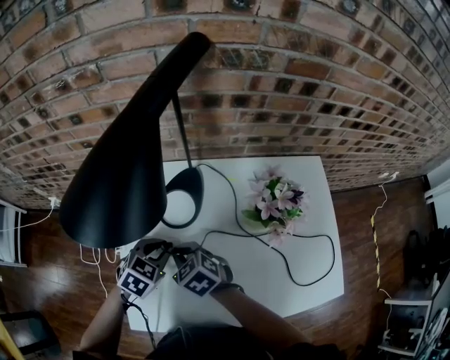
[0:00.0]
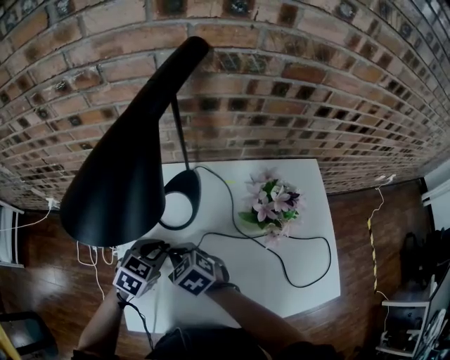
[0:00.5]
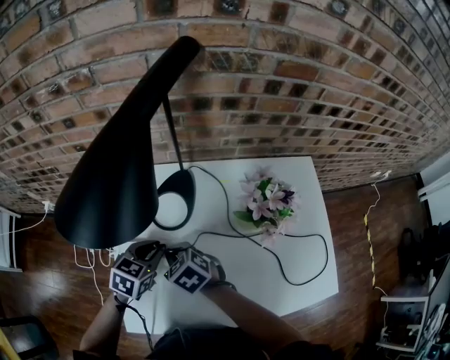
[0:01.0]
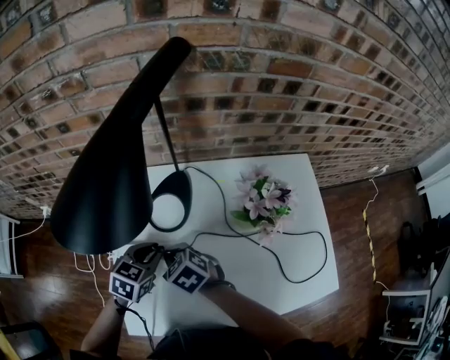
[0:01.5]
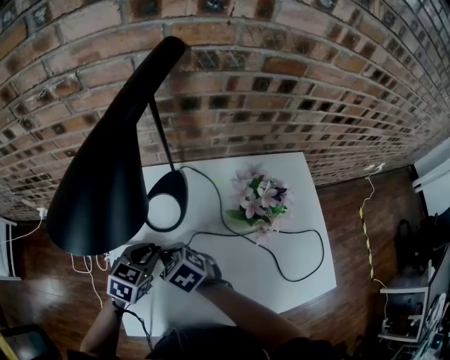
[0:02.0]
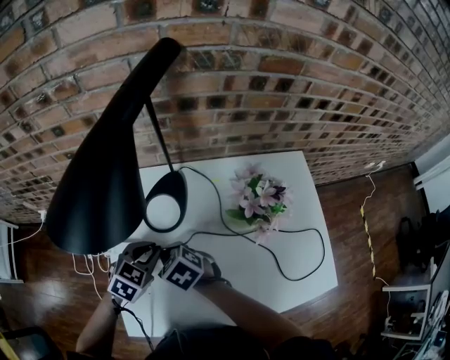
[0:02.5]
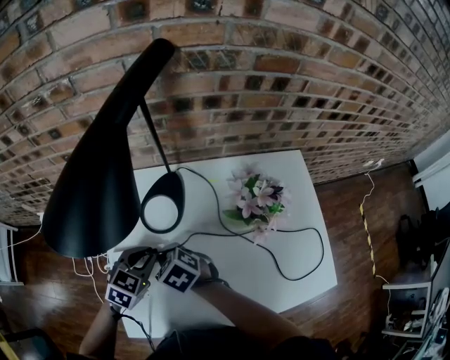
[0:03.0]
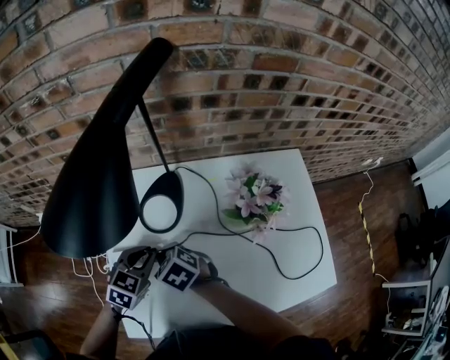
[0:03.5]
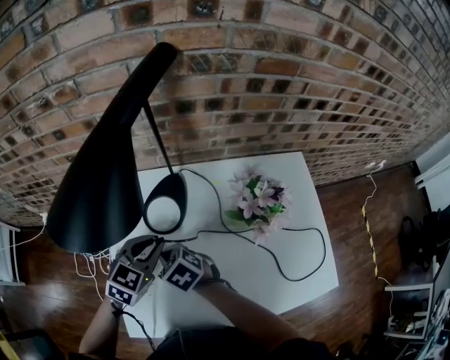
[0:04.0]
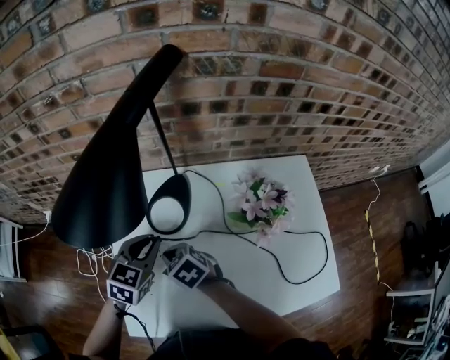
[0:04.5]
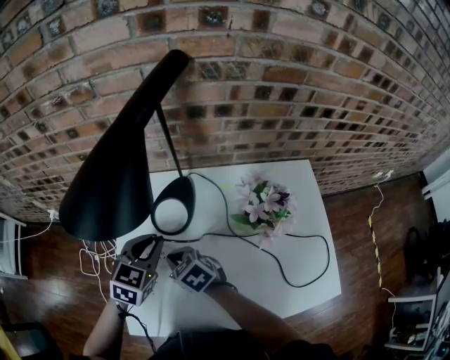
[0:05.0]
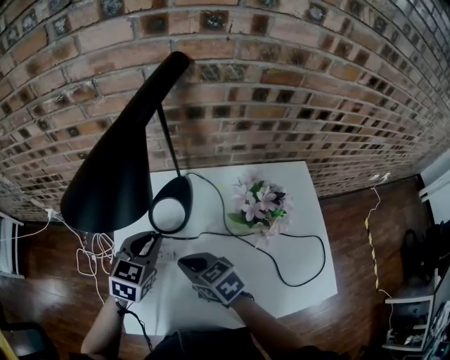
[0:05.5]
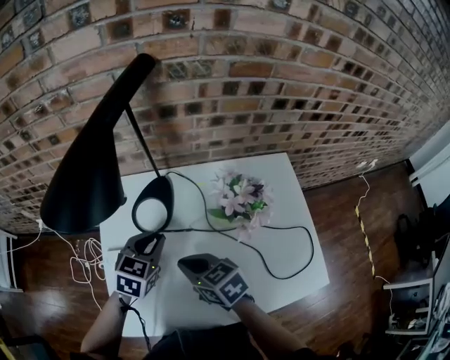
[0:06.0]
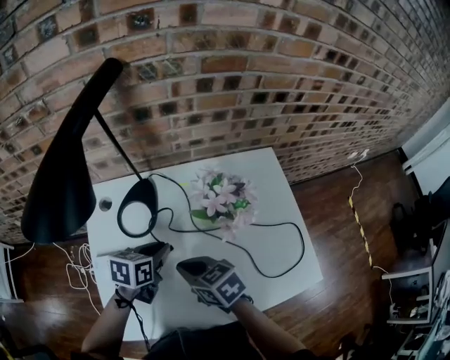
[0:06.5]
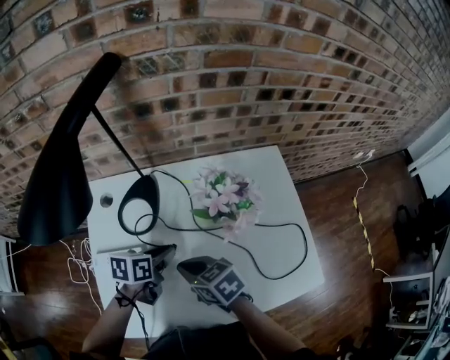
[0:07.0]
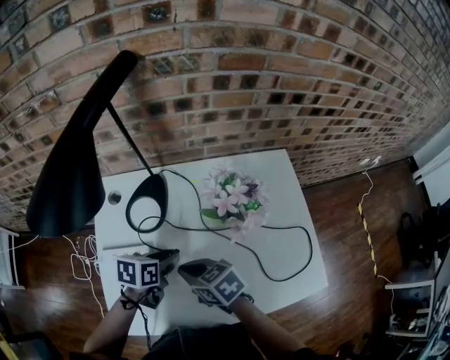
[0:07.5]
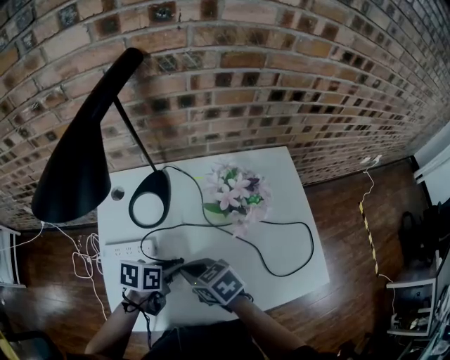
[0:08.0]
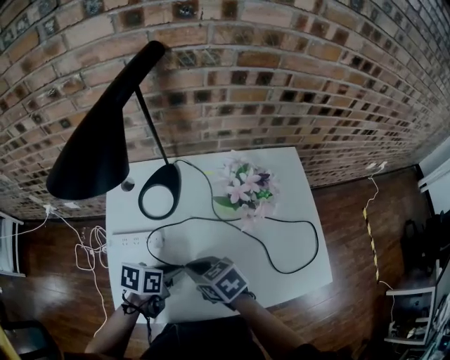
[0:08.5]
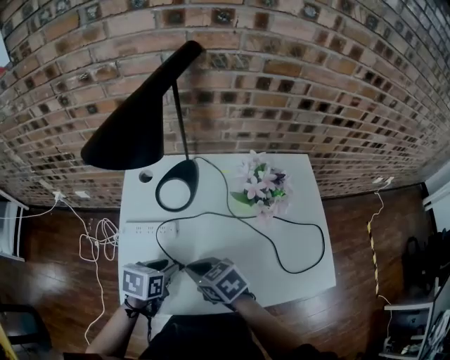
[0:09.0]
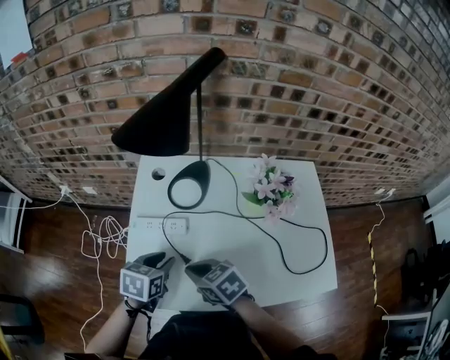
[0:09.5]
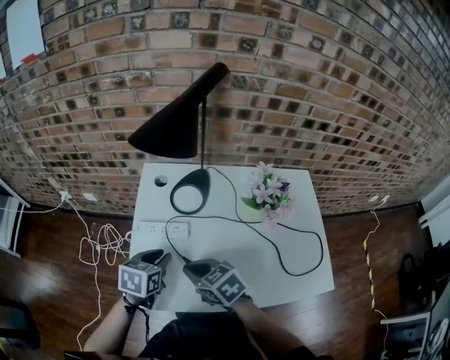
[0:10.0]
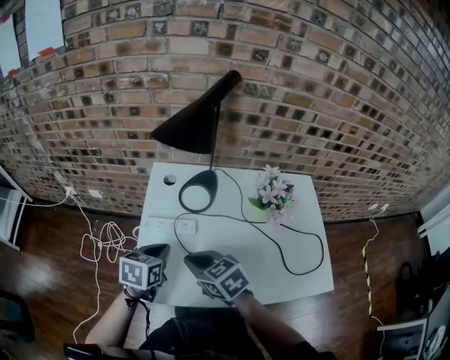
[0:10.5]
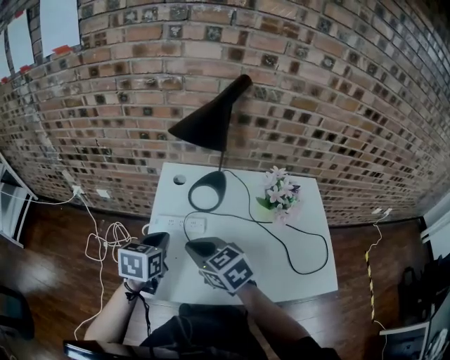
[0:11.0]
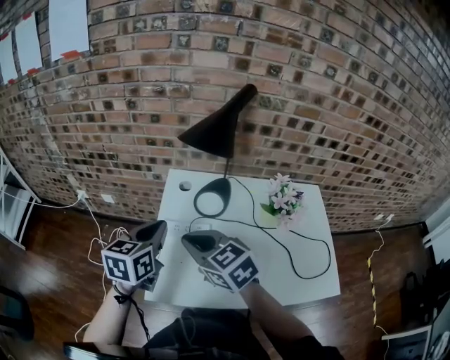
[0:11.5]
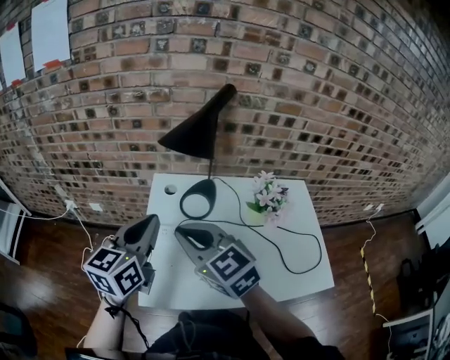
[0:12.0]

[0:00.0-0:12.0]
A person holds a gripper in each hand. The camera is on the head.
0:00.0 to 0:02.0: The grippers stay close to where they were, moving slightly.
0:02.0 to 0:04.0: The left gripper shifts roughly 5 cm upward.
0:04.0 to 0:06.0: The right gripper heads to the right, upward and backward, covering about 15 cm, and rotates roughly 30 degrees.
0:06.0 to 0:08.0: The left gripper changes place by approximately 15 cm, and rotates about 50 degrees. Meanwhile the right gripper changes place by approximately 5 cm.
0:08.0 to 0:10.0: The left gripper changes place by about 15 cm, and swivels some 30 degrees; the right gripper changes place by some 10 cm.
0:10.0 to 0:12.0: Both grippers travel together upward, roughly 20 cm. The left gripper tilts its fingers approximately 40 degrees upward, and closes up; the right gripper rotates some 30 degrees.

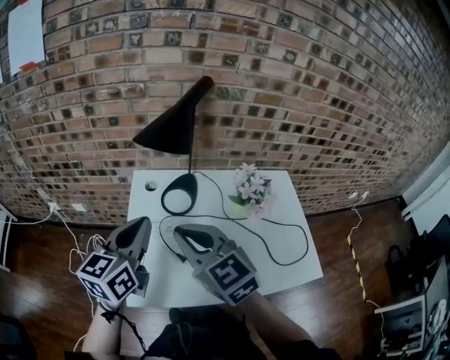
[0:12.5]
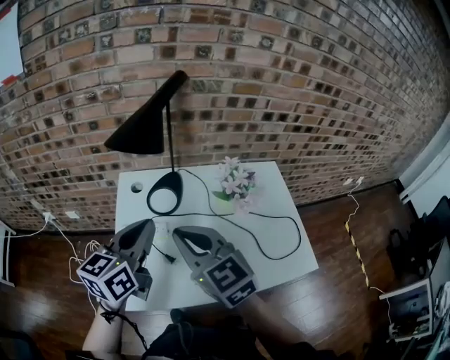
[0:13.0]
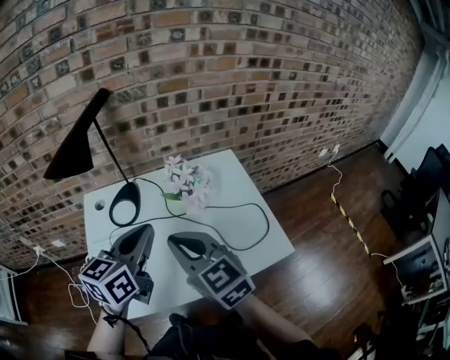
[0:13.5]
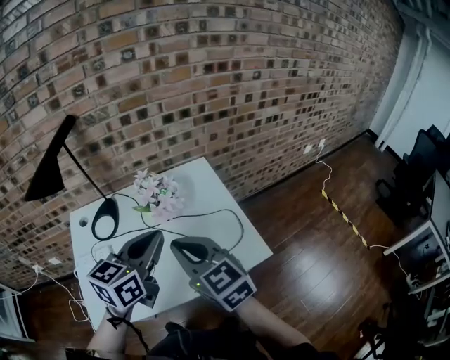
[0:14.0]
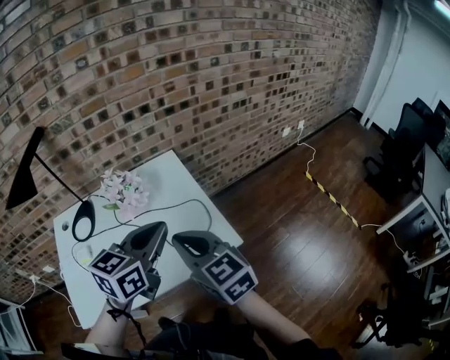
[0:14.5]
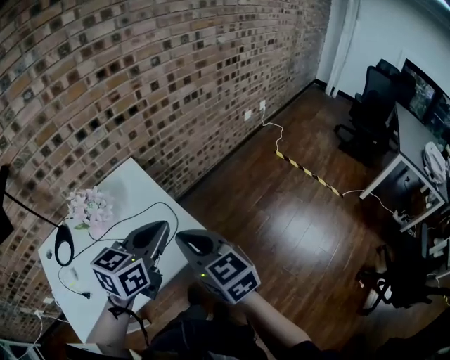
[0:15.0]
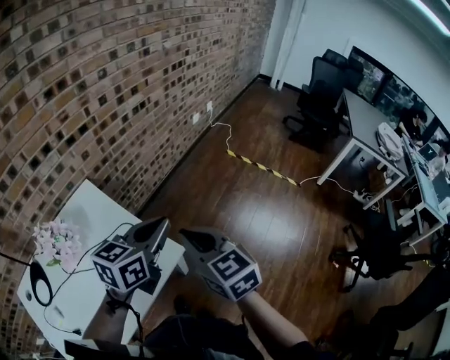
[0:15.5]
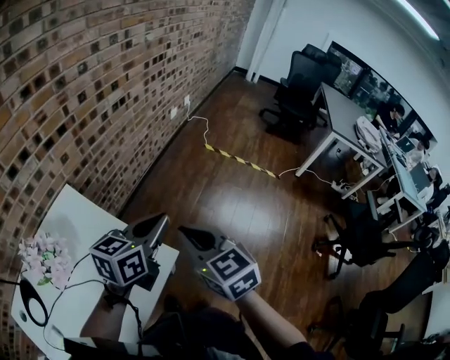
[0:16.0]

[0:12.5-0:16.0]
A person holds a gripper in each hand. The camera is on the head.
0:12.5 to 0:14.5: The two grippers travel together, roughly 40 cm. The right gripper rotates some 30 degrees; the left gripper swivels about 40 degrees.
0:14.5 to 0:16.0: The left gripper moves some 25 cm, and rotates about 40 degrees, while the right gripper shifts by about 20 cm, and turns by approximately 40 degrees.

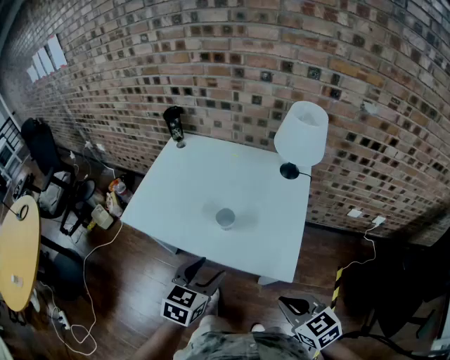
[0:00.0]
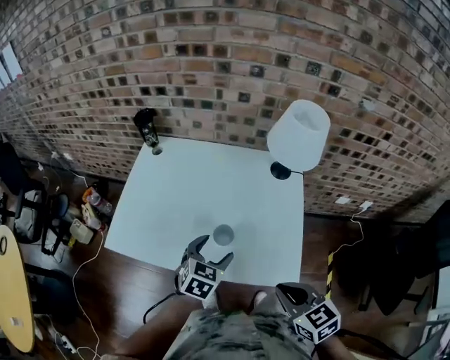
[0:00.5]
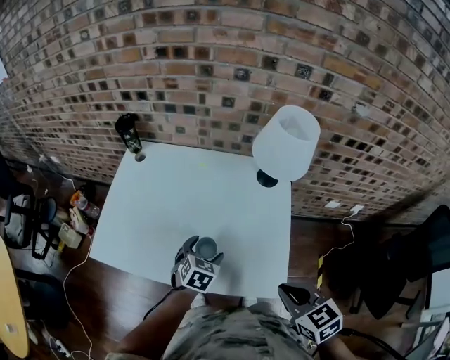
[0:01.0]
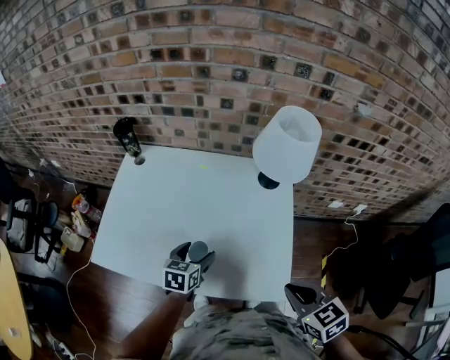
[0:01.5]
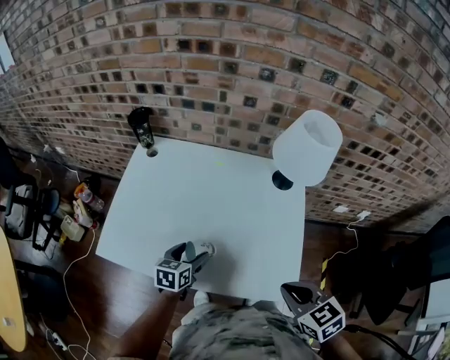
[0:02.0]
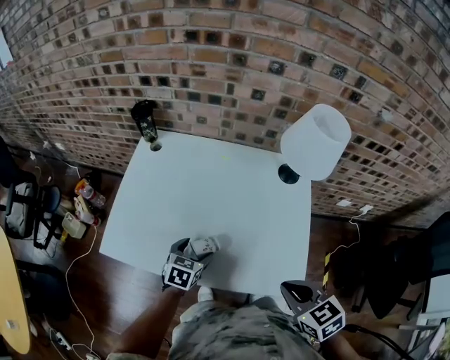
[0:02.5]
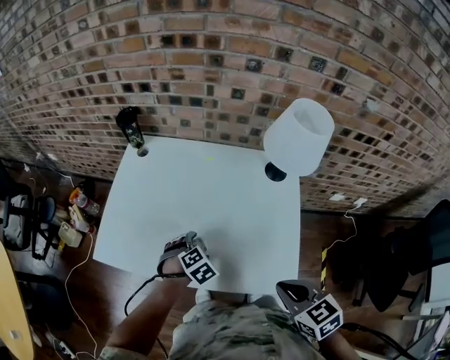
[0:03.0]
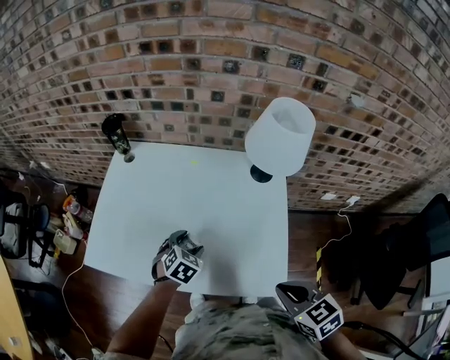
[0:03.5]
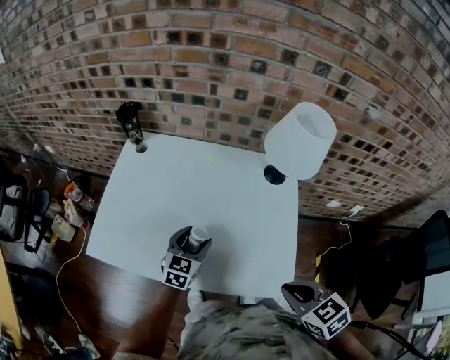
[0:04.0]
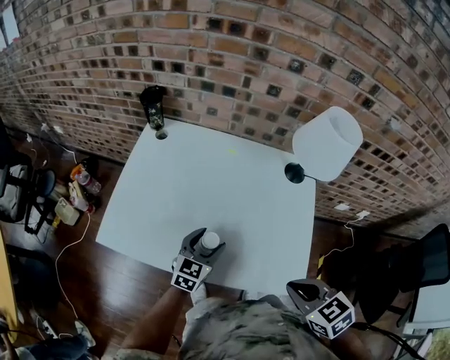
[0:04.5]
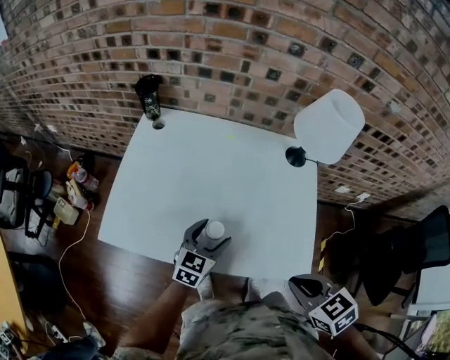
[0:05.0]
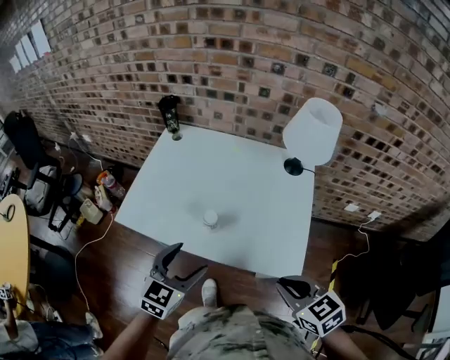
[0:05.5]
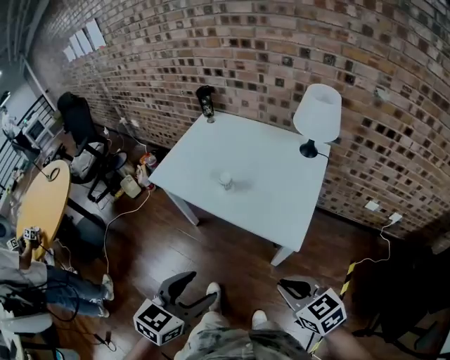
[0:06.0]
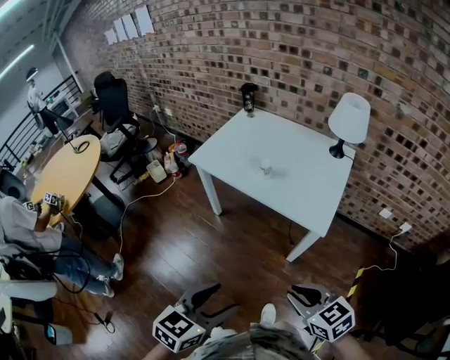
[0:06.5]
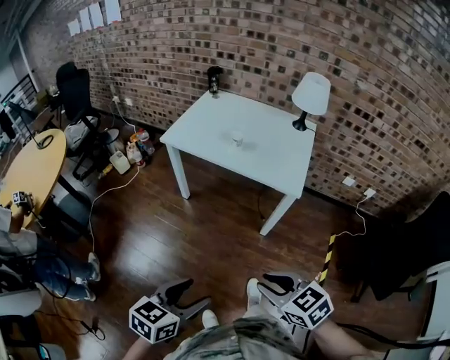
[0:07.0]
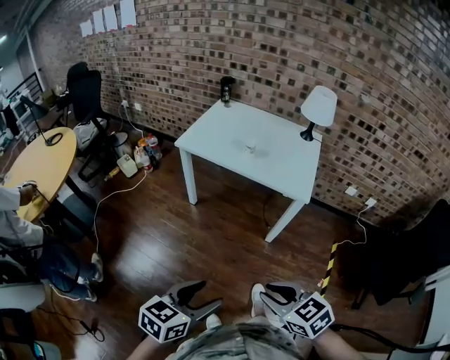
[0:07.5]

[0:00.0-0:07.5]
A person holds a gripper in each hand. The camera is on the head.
0:00.0 to 0:02.0: The right gripper is displaced forward by some 15 cm, while the left gripper heads forward, downward and to the left, covering about 30 cm.
0:02.0 to 0:04.0: The left gripper changes place by roughly 5 cm, and turns by about 30 degrees.
0:04.0 to 0:05.5: The left gripper moves backward and upward, approximately 25 cm. Meanwhile the right gripper moves backward, approximately 5 cm.
0:05.5 to 0:07.5: The pair of grippers is taken backward, some 50 cm. The left gripper swivels some 30 degrees.

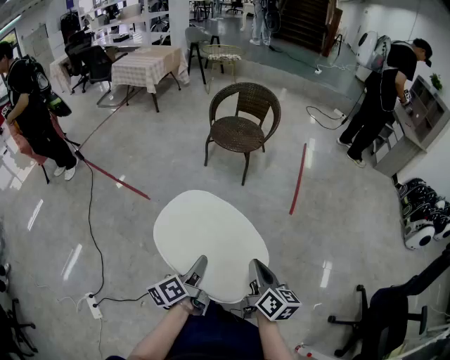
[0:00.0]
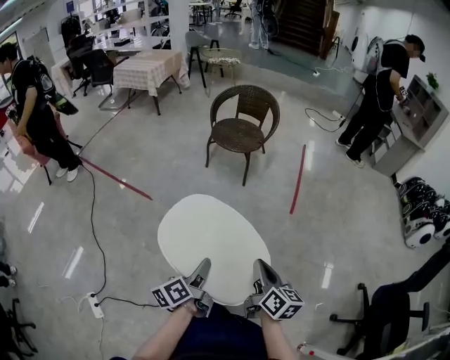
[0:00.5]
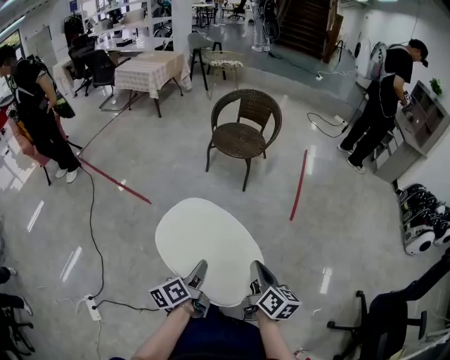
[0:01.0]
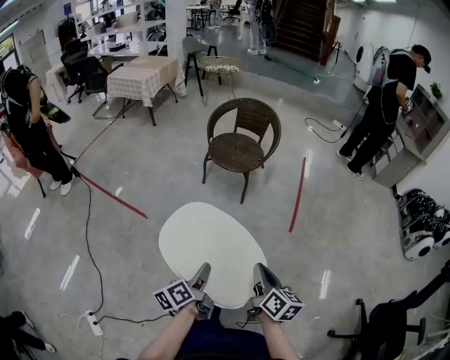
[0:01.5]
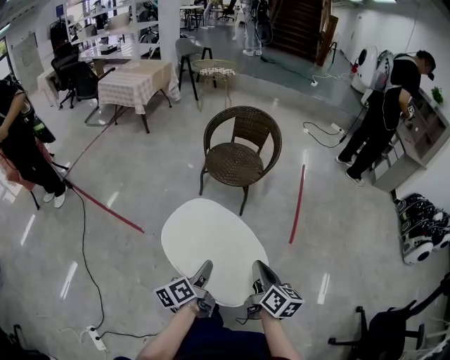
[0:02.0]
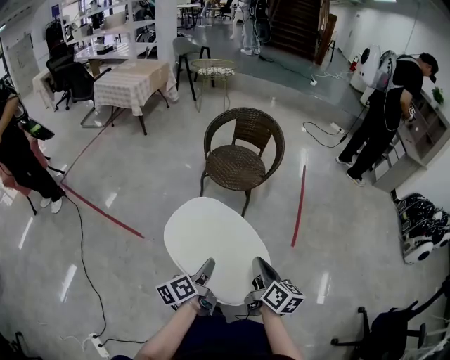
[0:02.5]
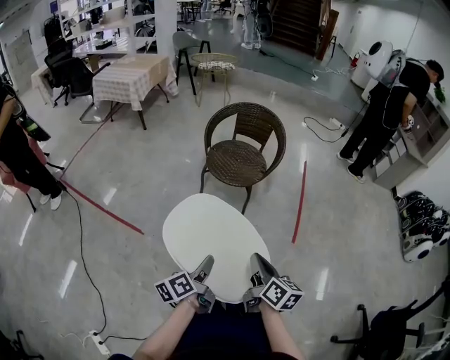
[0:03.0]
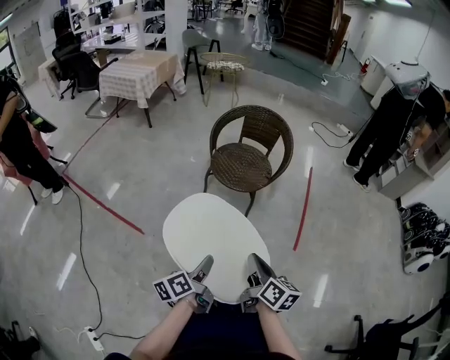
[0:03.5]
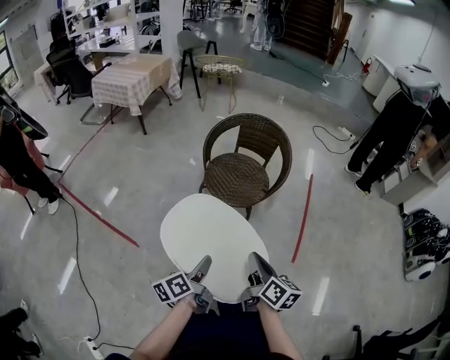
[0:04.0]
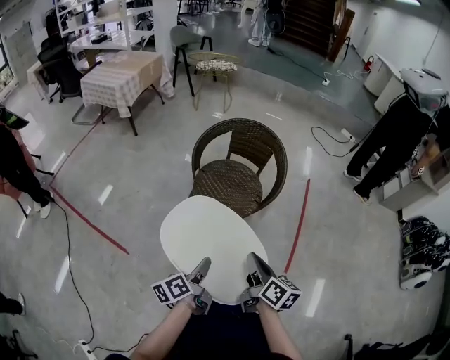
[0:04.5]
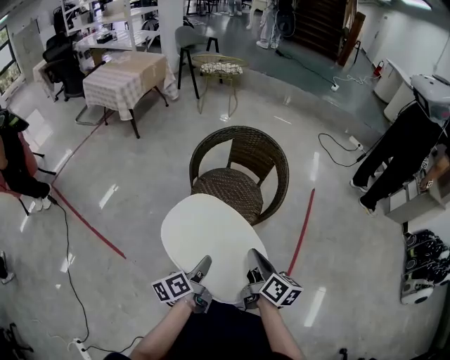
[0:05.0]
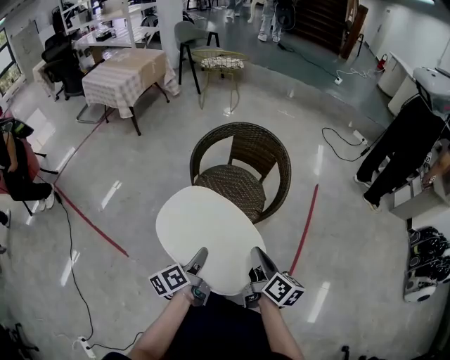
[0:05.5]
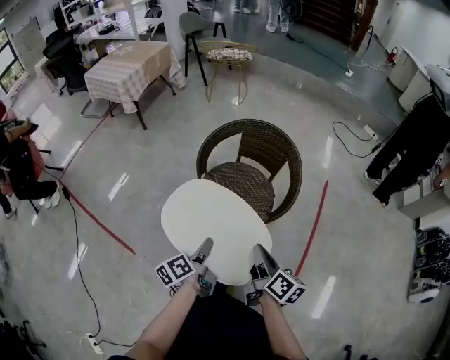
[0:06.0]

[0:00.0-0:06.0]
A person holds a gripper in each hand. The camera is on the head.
0:00.0 to 0:02.0: The two grippers go approximately 20 cm forward.
0:02.0 to 0:04.0: Both grippers move forward, about 20 cm.
0:04.0 to 0:06.0: The two grippers go roughly 25 cm forward.
